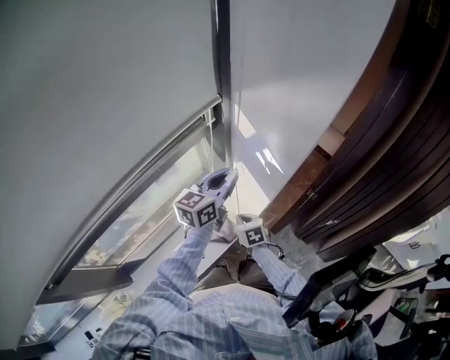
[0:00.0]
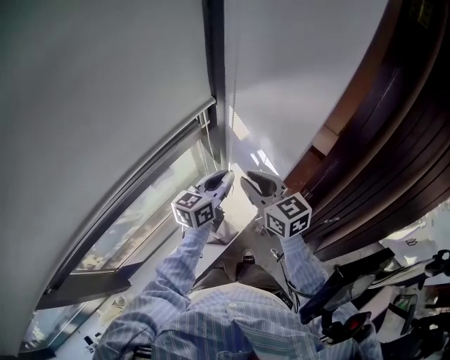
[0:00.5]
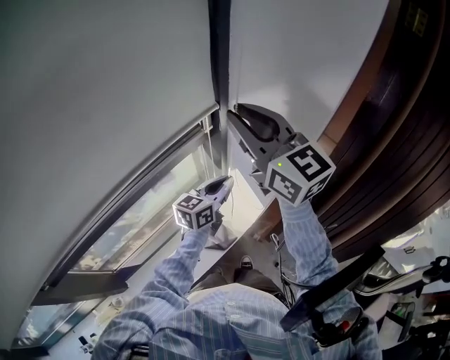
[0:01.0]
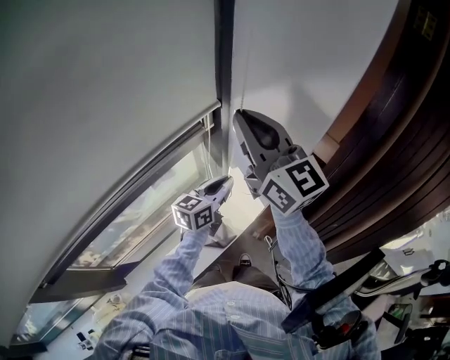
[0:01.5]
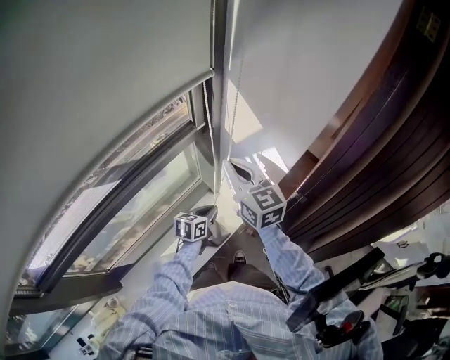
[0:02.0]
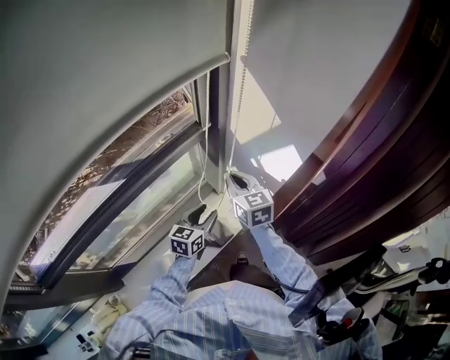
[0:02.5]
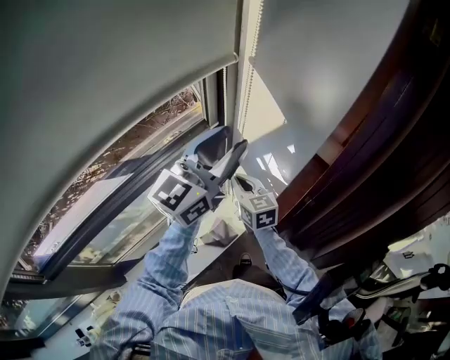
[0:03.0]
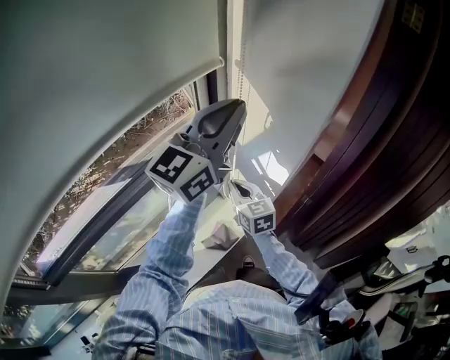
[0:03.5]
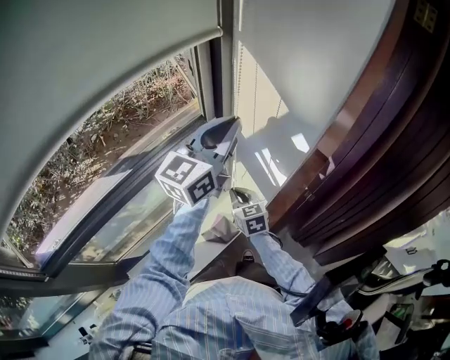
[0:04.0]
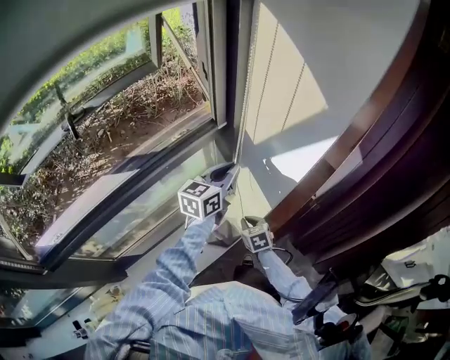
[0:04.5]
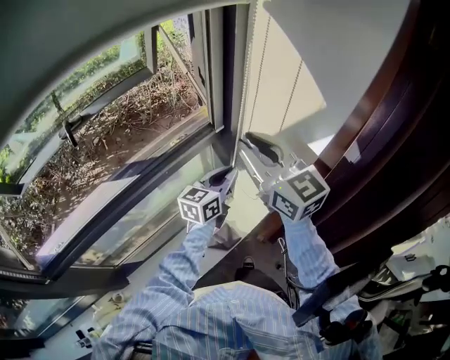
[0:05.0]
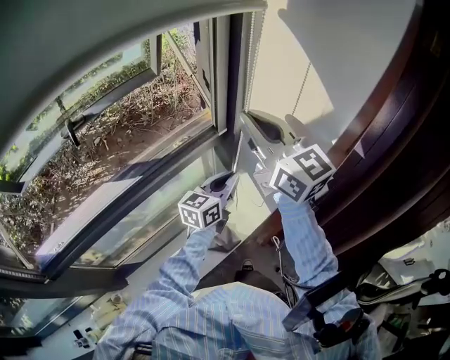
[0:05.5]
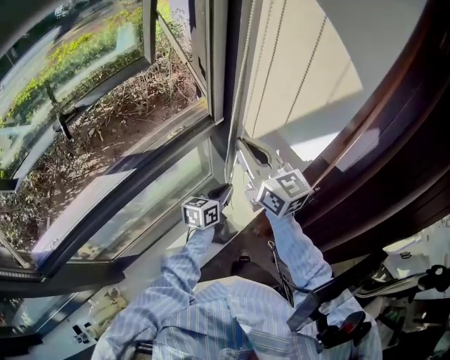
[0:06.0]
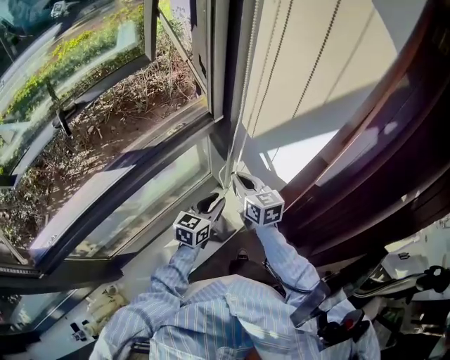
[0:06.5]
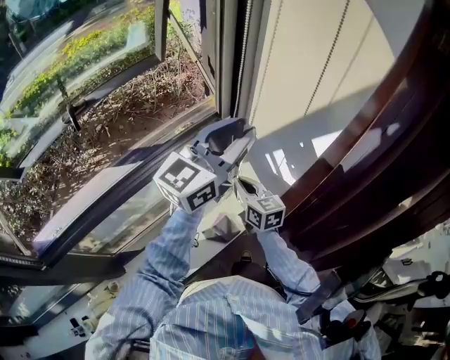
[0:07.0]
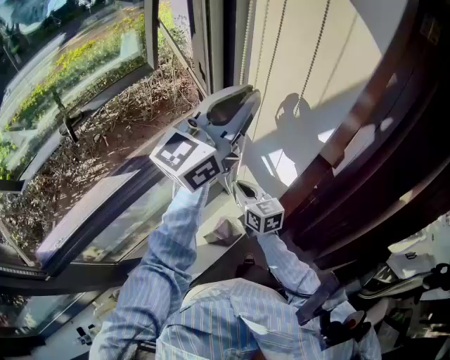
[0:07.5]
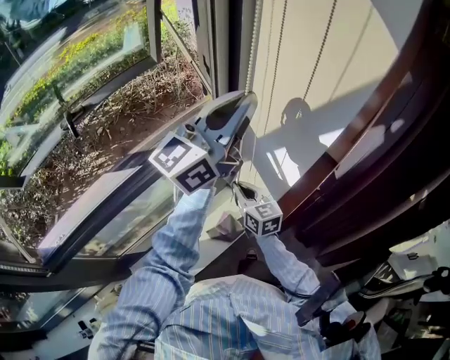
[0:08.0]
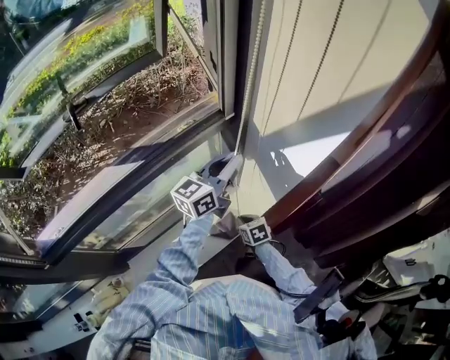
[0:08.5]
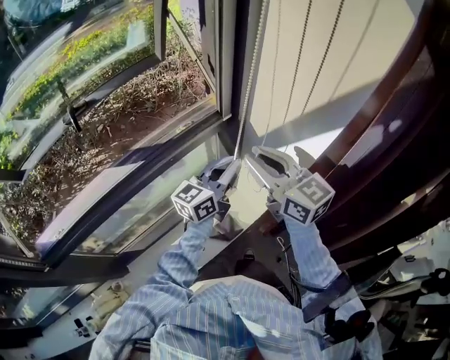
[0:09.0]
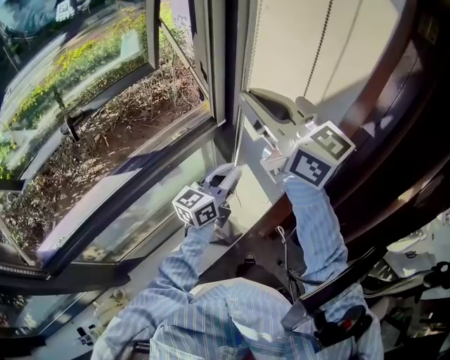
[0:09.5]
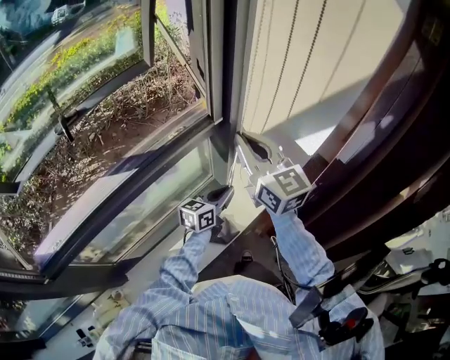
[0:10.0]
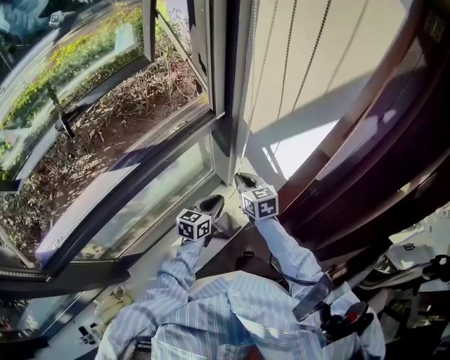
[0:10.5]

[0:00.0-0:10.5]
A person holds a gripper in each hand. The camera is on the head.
0:00.0 to 0:02.0: The left gripper goes about 20 cm downward, and changes its angle by roughly 30 degrees; the right gripper shifts approximately 35 cm upward, and tilts its fingers roughly 40 degrees upward.
0:02.0 to 0:04.0: The left gripper goes roughly 40 cm upward, points its fingers roughly 40 degrees further upward, and opens and closes again. Meanwhile the right gripper travels downward by about 20 cm, and rotates about 20 degrees.
0:04.0 to 0:06.5: The left gripper heads downward, covering about 30 cm, and rotates roughly 30 degrees, while the right gripper goes up and down, approximately 50 cm each way, reversing 2 times.
0:06.5 to 0:08.5: The left gripper shifts approximately 20 cm upward and forward, and changes its angle by some 20 degrees; the right gripper travels downward and backward by some 25 cm, and tilts its fingers some 40 degrees downward.
0:08.5 to 0:10.5: The right gripper heads forward, covering roughly 10 cm, travels upward and back again, about 60 cm each way, and swivels about 30 degrees; the left gripper is displaced downward by approximately 20 cm, and swivels roughly 30 degrees.

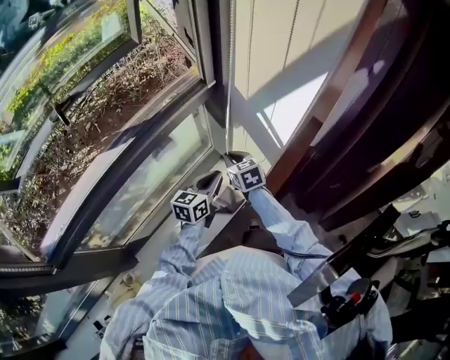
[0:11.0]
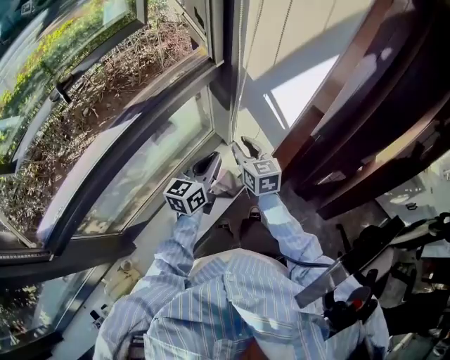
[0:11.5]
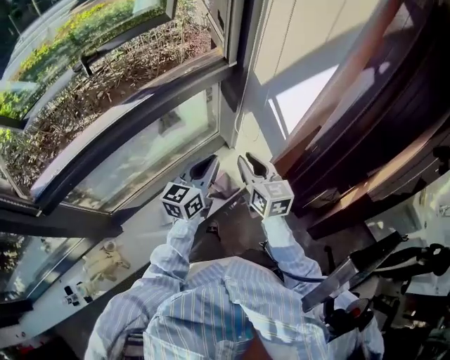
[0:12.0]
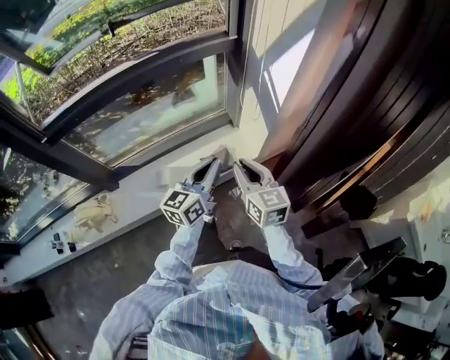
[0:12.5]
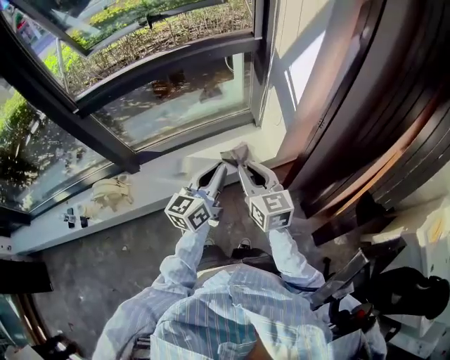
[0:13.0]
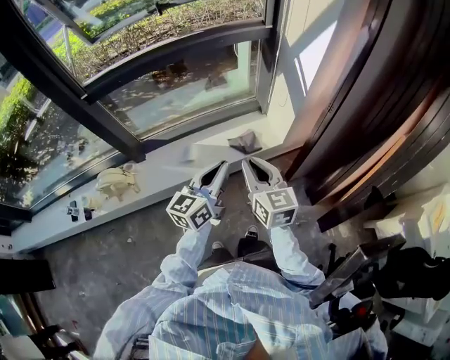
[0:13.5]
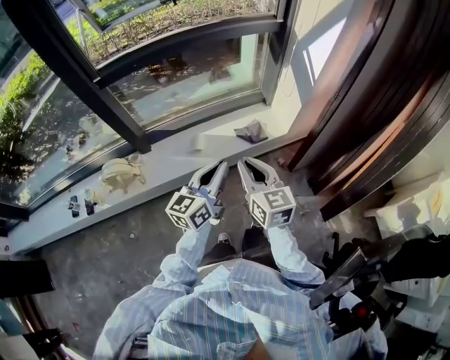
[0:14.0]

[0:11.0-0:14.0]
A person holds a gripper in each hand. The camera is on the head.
0:11.0 to 0:12.5: Both grippers travel together backward, approximately 25 cm. The right gripper rotates roughly 20 degrees. Meanwhile the left gripper changes its angle by roughly 30 degrees.
0:12.5 to 0:14.0: The two grippers go approximately 25 cm backward and to the left.

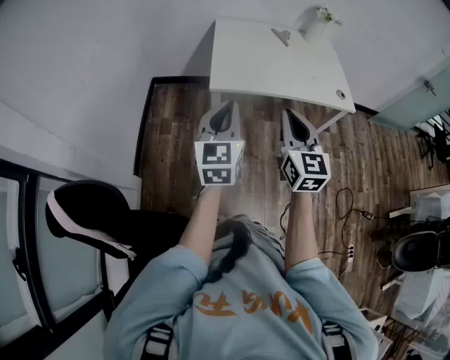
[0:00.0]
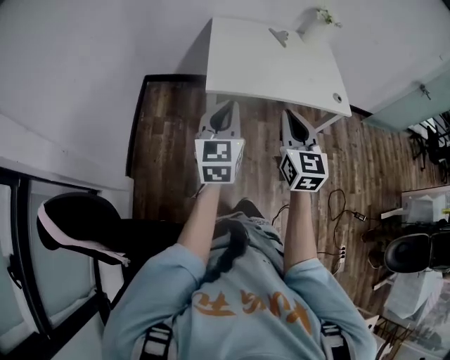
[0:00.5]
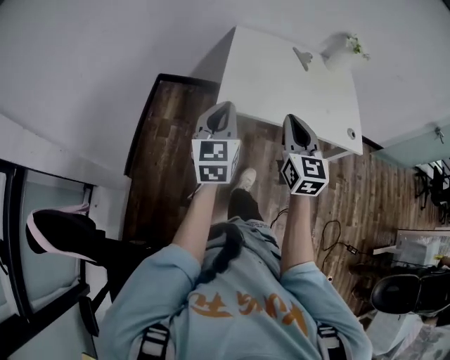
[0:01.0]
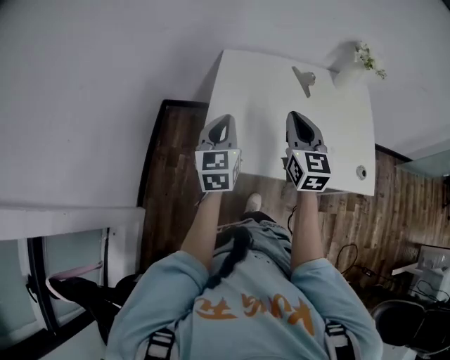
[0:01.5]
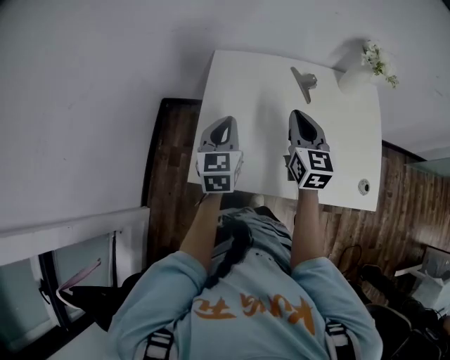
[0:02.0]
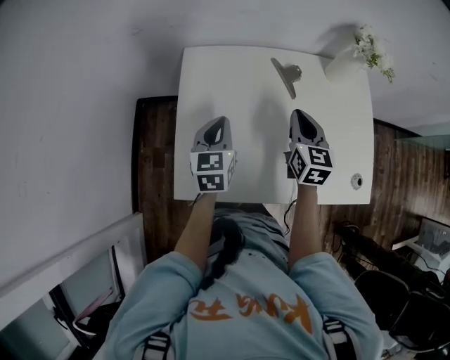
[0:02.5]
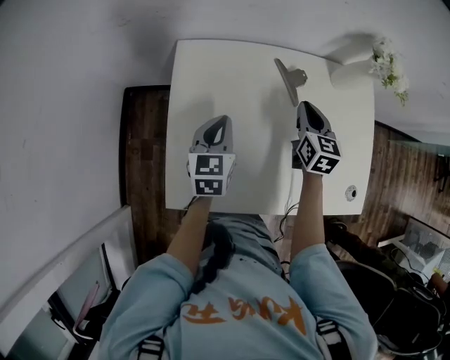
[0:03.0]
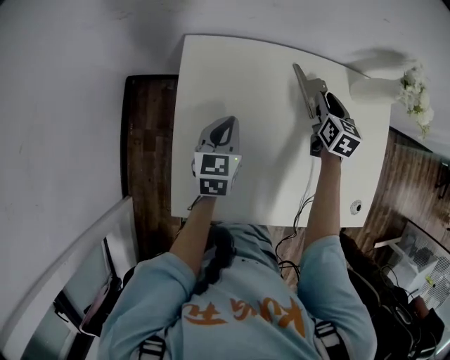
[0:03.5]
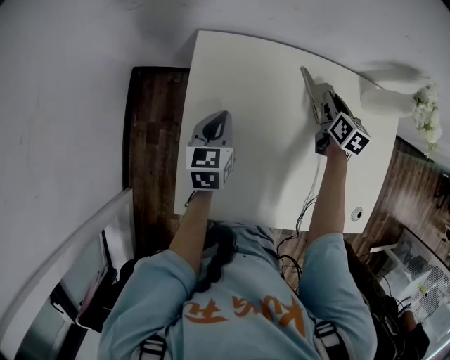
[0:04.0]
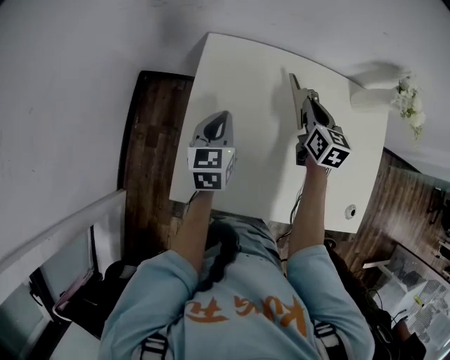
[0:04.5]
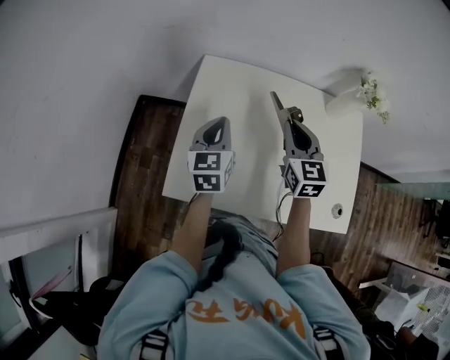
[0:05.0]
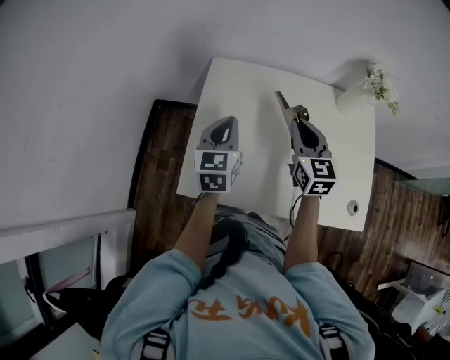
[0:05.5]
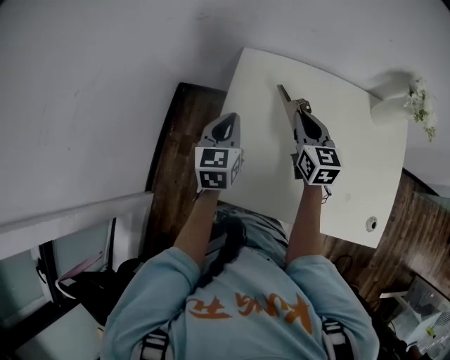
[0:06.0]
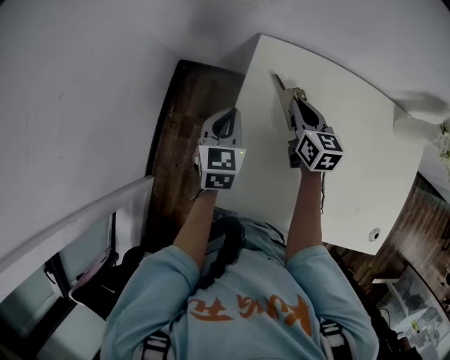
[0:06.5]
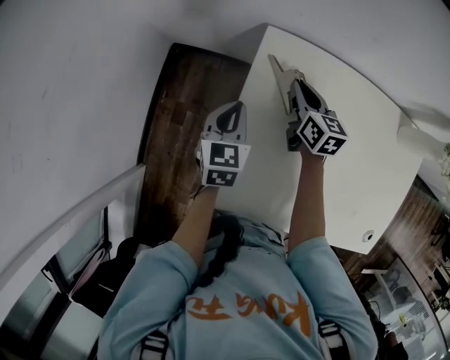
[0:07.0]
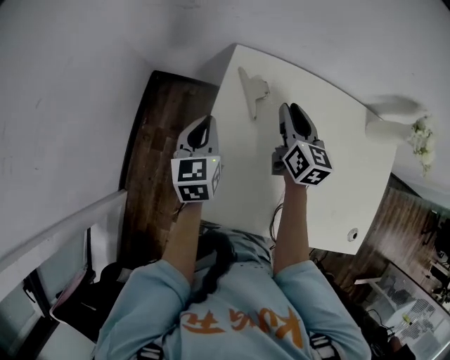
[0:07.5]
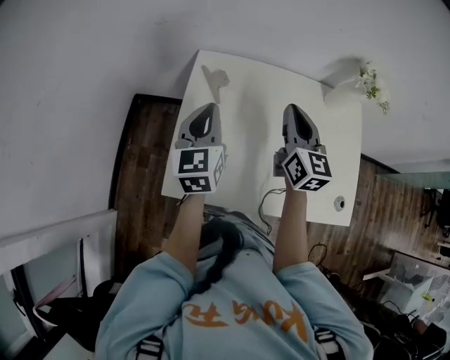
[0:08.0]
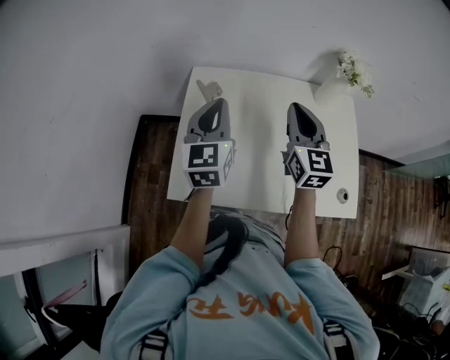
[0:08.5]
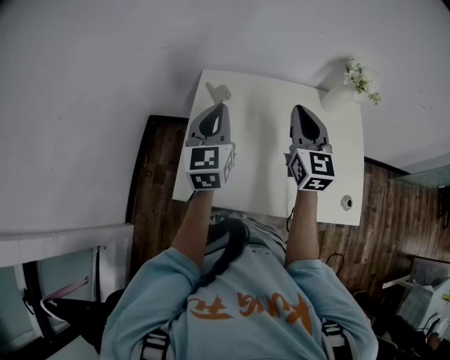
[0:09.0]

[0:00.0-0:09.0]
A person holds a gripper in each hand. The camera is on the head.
0:00.0 to 0:02.0: Both grippers are carried forward, roughly 50 cm.
0:02.0 to 0:04.5: The two grippers go some 20 cm forward and downward. The right gripper opens, then closes once more.
0:04.5 to 0:07.0: The left gripper heads to the left and forward, covering approximately 15 cm. Meanwhile the right gripper moves to the left and forward, about 20 cm.
0:07.0 to 0:09.0: Both grippers travel together upward, backward and to the right, approximately 35 cm. The left gripper changes its angle by roughly 30 degrees. The right gripper rotates about 40 degrees.

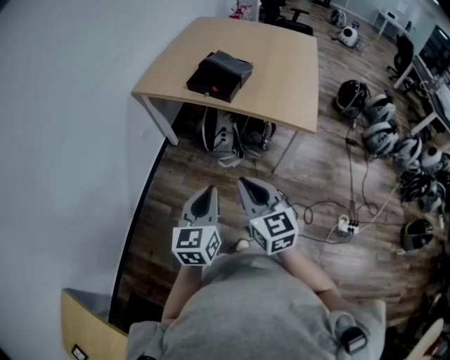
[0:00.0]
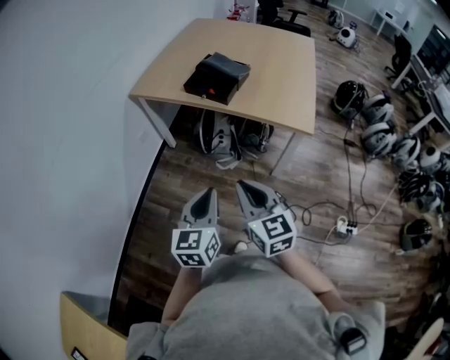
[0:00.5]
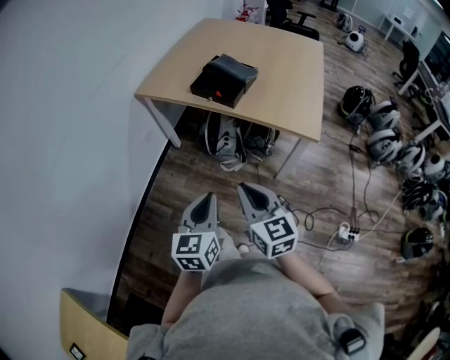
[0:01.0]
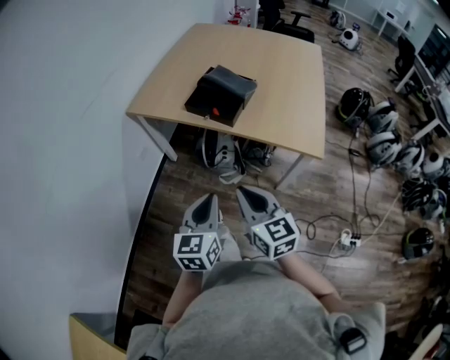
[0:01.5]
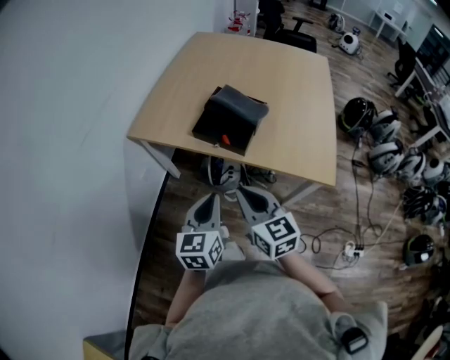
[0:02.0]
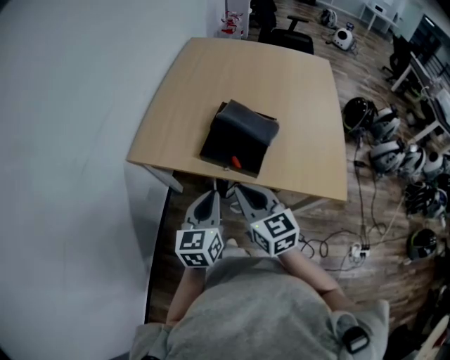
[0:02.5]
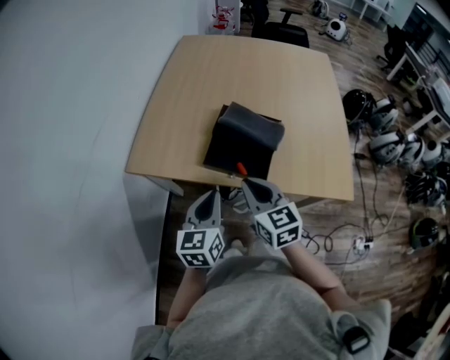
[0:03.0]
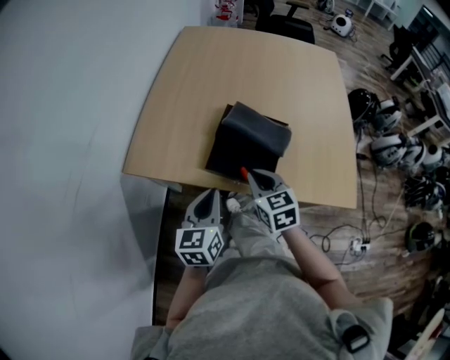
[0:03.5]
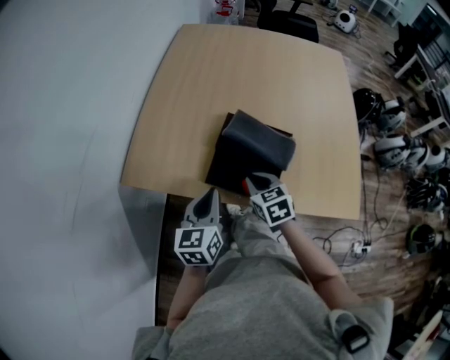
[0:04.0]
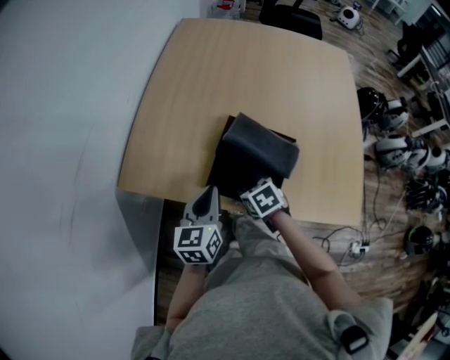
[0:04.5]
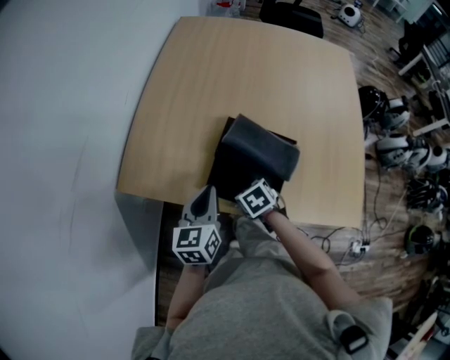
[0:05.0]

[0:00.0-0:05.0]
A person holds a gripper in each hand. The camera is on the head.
0:00.0 to 0:02.5: Both grippers move forward, about 40 cm.
0:02.5 to 0:05.0: The left gripper is displaced forward by some 20 cm, while the right gripper heads downward and forward, covering about 30 cm, tips its fingers downward by roughly 50 degrees, and opens.
